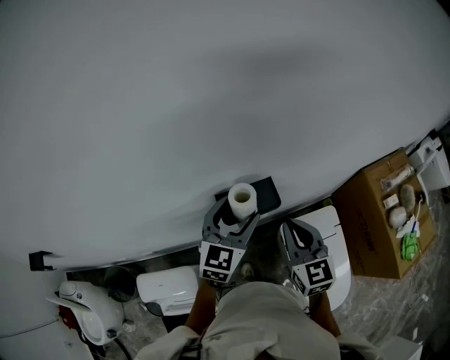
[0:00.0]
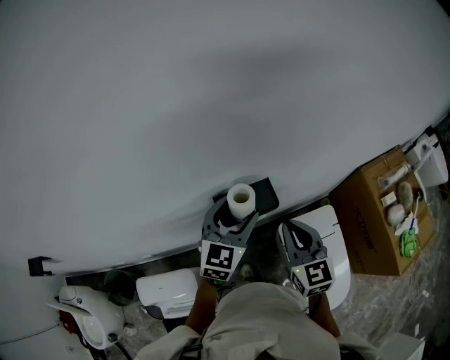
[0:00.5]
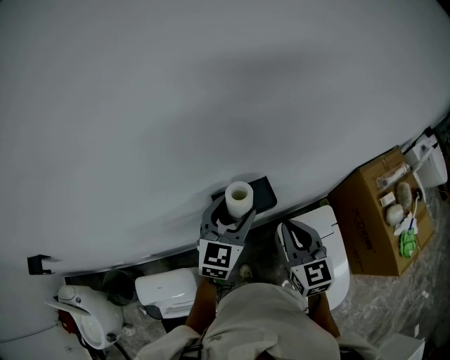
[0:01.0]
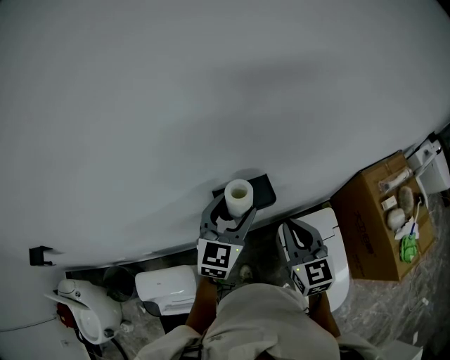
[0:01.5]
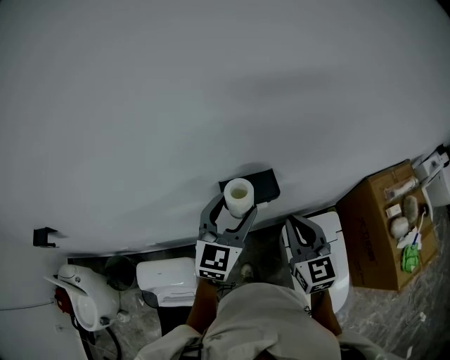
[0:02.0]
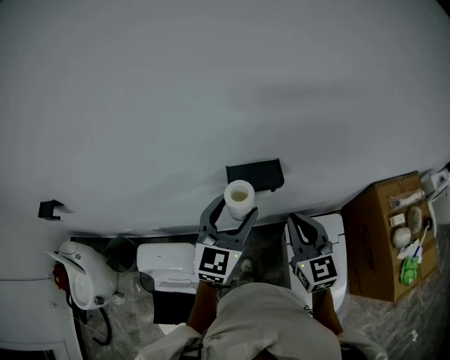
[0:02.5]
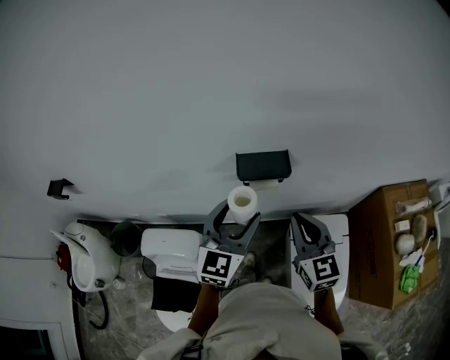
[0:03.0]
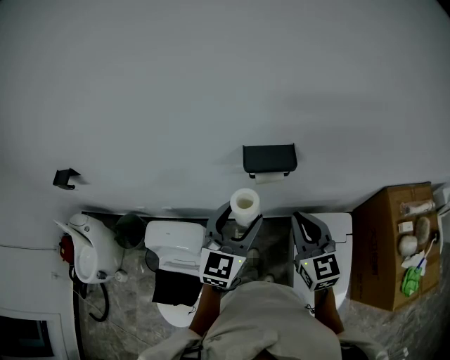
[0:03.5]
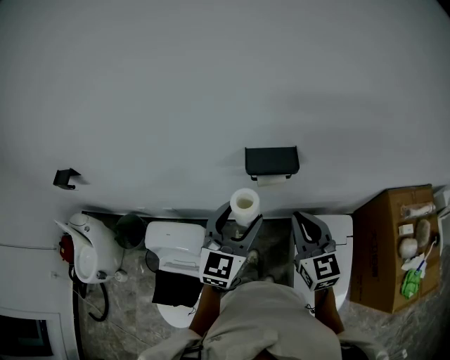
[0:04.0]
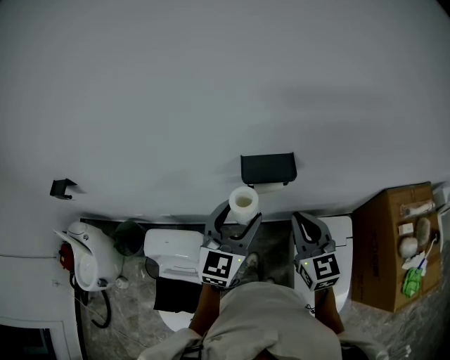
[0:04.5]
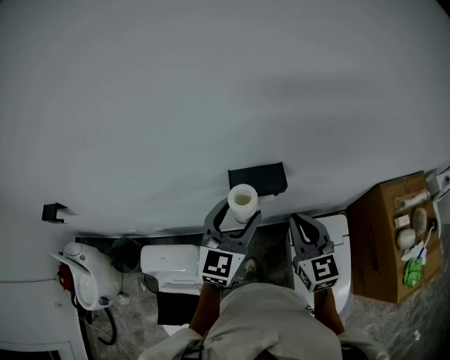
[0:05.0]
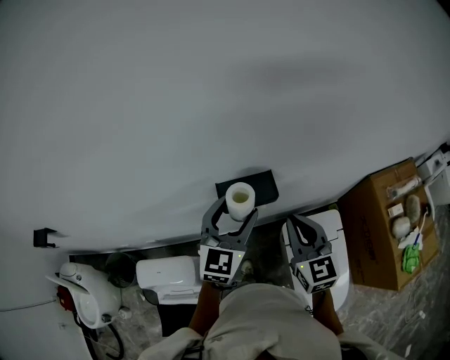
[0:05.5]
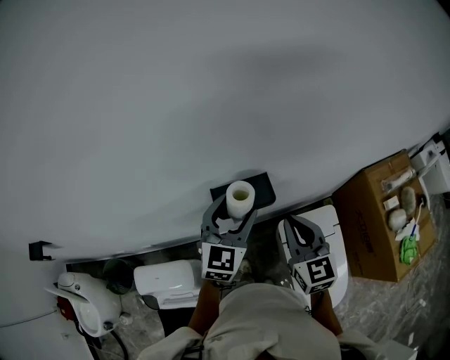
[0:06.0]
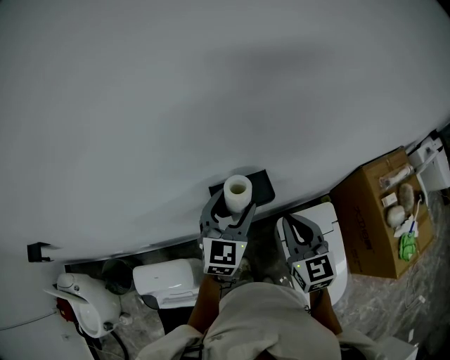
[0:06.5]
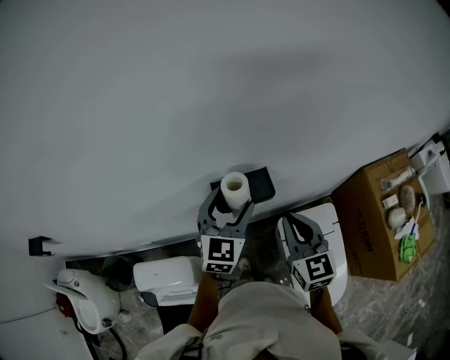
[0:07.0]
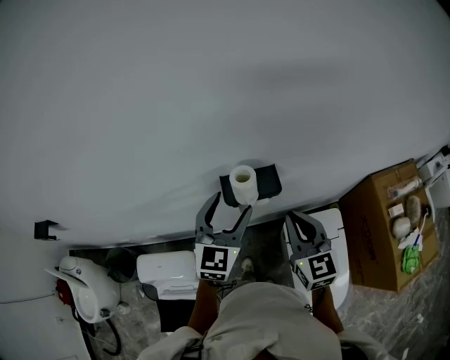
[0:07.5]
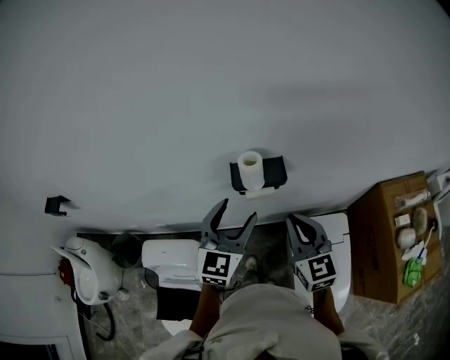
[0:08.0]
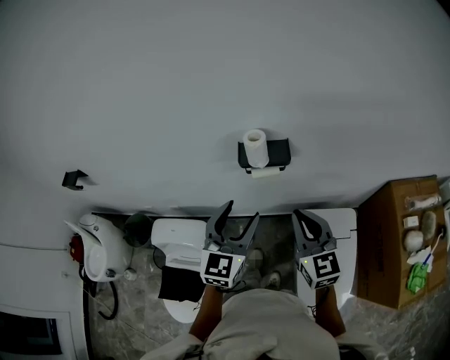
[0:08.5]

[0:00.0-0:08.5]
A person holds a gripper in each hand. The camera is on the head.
0:00.0 to 0:02.0: The left gripper moves some 5 cm.
0:02.0 to 0:04.0: The left gripper shifts approximately 10 cm backward; the right gripper heads backward, covering approximately 5 cm.
0:04.0 to 0:06.5: The left gripper travels forward by some 15 cm. Meanwhile the right gripper is displaced forward by roughly 10 cm.
0:06.5 to 0:08.5: The left gripper travels backward by approximately 20 cm. Meanwhile the right gripper moves backward, some 10 cm.

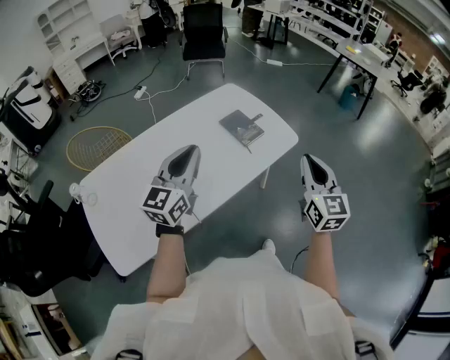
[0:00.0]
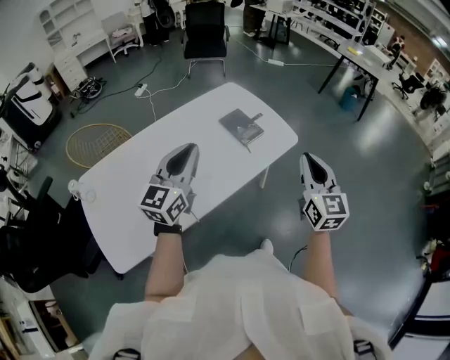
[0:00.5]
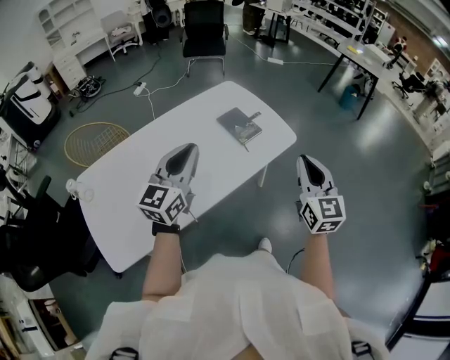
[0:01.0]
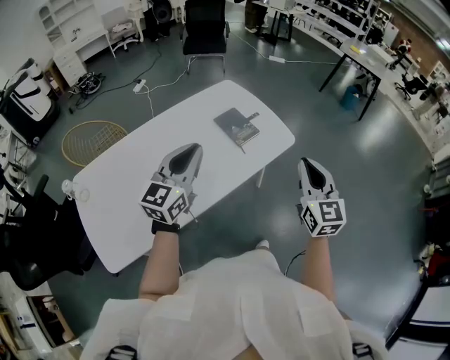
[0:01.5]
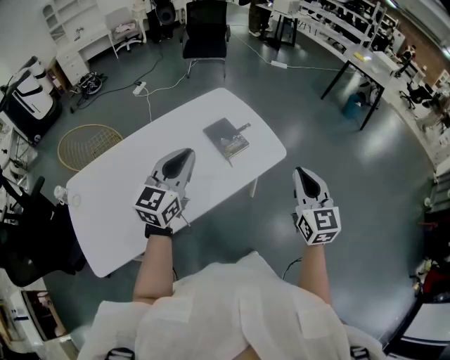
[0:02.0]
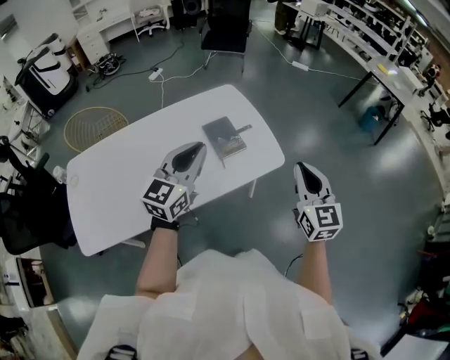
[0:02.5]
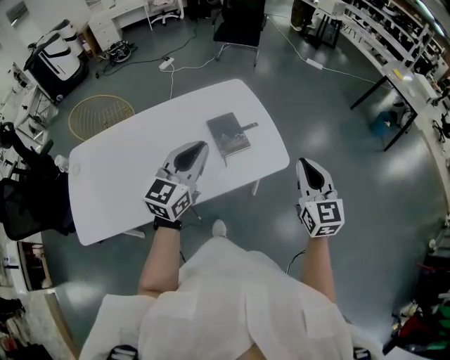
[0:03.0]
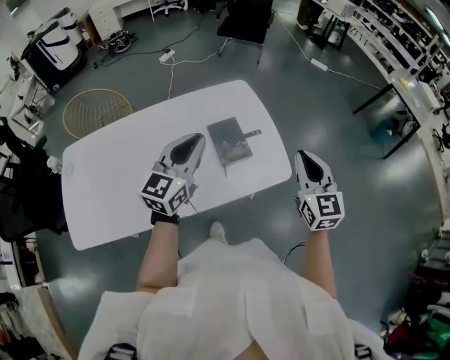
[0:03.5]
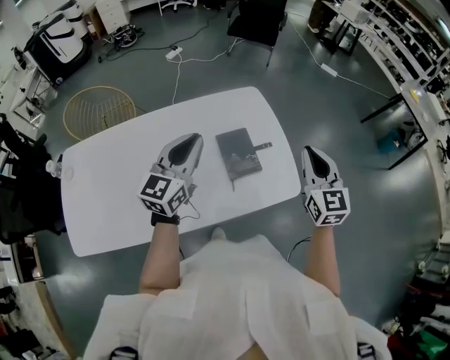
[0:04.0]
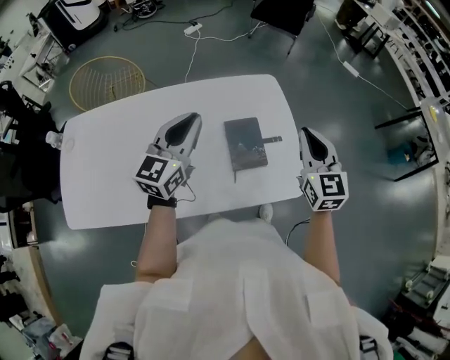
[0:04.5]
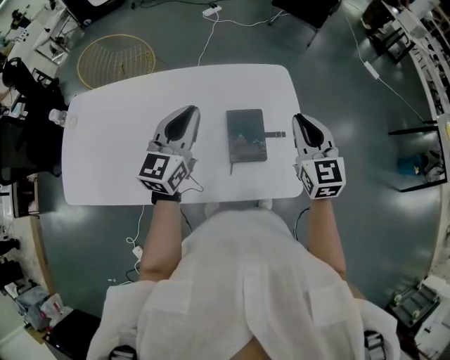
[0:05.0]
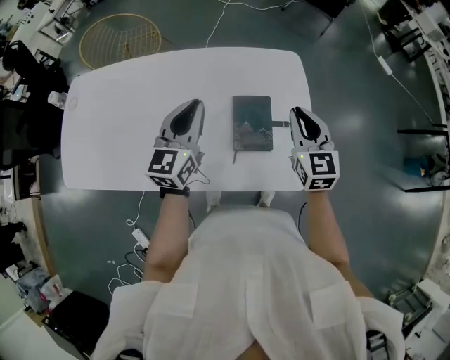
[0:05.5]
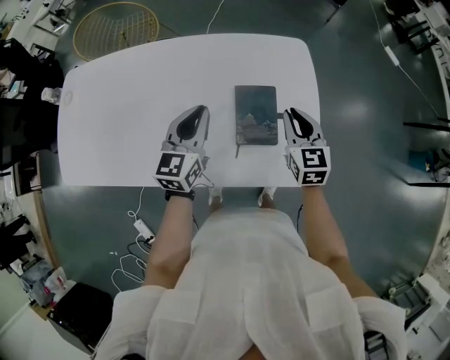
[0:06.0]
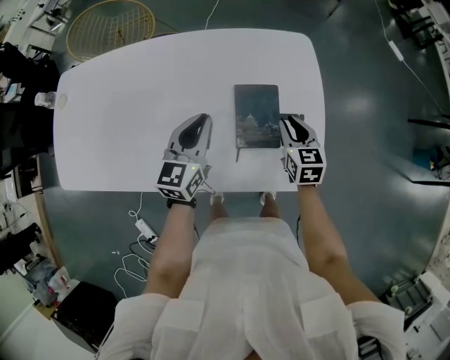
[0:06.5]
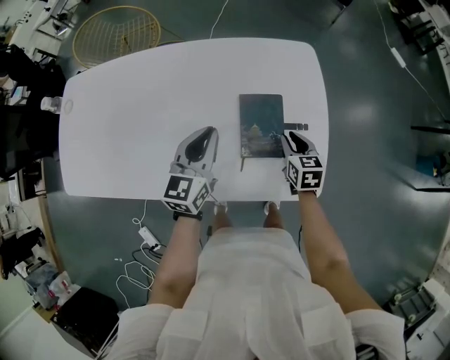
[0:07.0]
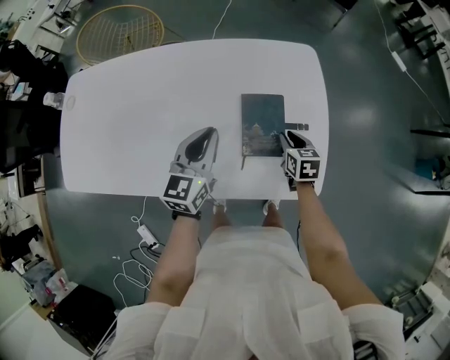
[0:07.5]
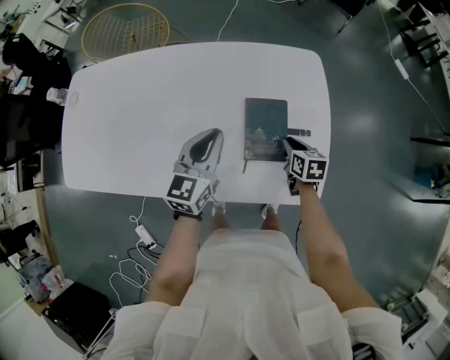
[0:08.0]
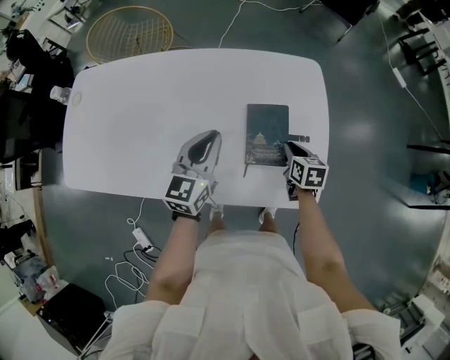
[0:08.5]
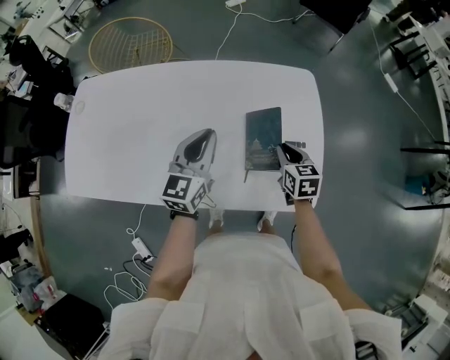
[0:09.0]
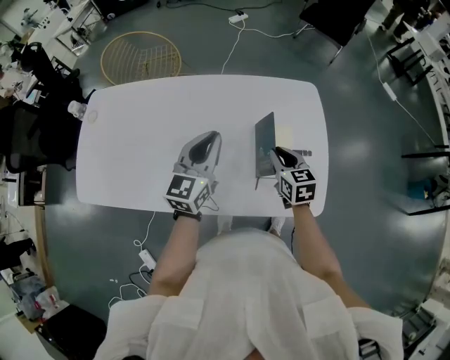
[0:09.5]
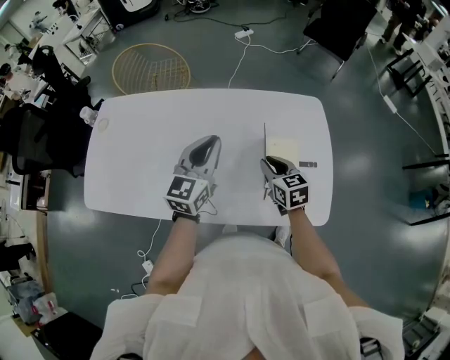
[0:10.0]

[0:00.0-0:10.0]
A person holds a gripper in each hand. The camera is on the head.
0:00.0 to 0:02.0: The two grippers go some 10 cm forward and to the right.
0:02.0 to 0:04.0: Both grippers move forward, some 25 cm.
0:04.0 to 0:06.0: The grippers both shift downward and forward by approximately 20 cm. The right gripper turns by some 30 degrees; the left gripper swivels some 30 degrees.
0:06.0 to 0:08.0: The right gripper goes approximately 15 cm downward, and swivels approximately 30 degrees.
0:08.0 to 0:10.0: The left gripper goes about 15 cm upward and to the left. Meanwhile the right gripper is displaced to the left and upward by some 25 cm, and changes its angle by about 30 degrees.

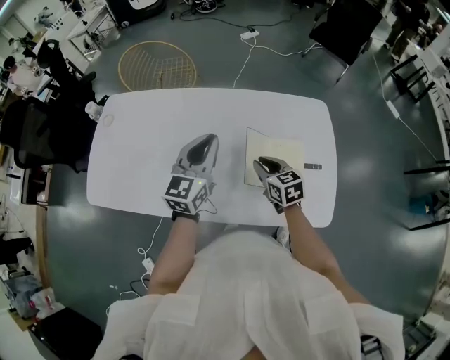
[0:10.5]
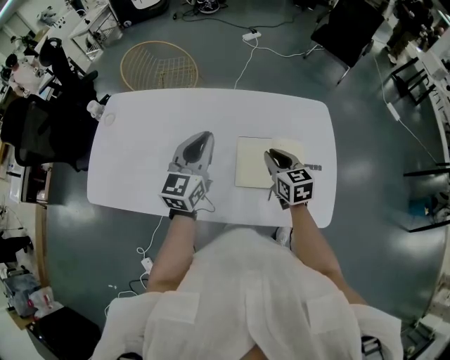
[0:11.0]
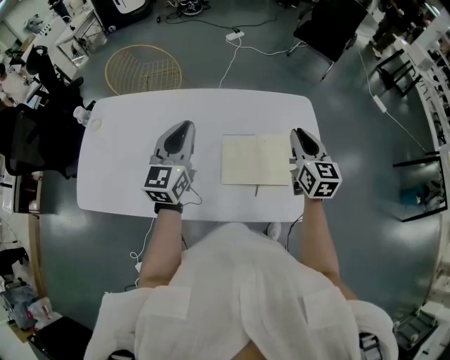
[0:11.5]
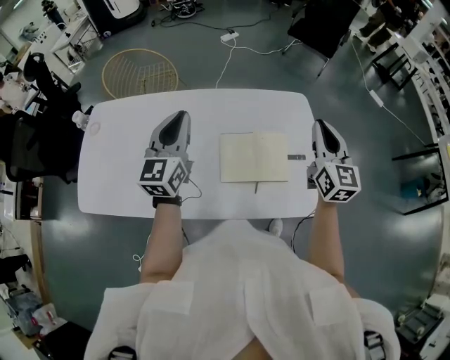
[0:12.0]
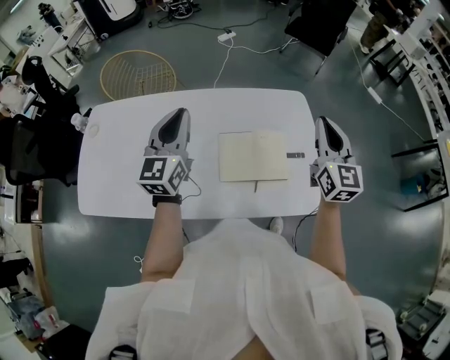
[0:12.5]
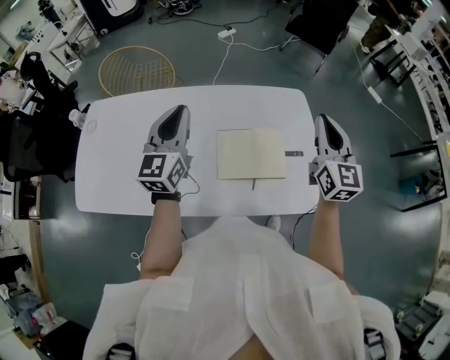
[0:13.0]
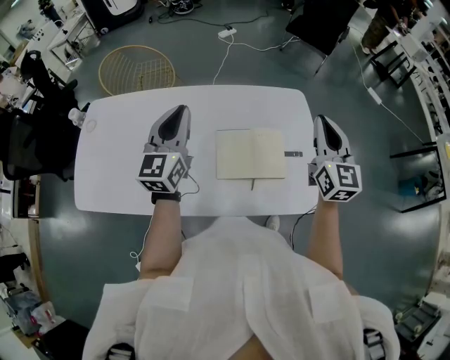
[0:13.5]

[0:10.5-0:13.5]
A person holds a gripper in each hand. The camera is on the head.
0:10.5 to 0:12.0: The left gripper moves upward, roughly 5 cm. Meanwhile the right gripper goes approximately 30 cm upward and to the right, and tilts its fingers some 30 degrees upward.
0:12.0 to 0:13.5: The grippers move only a little.

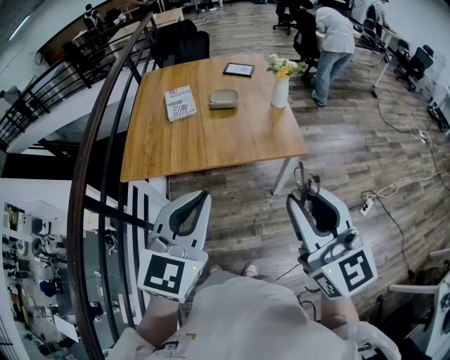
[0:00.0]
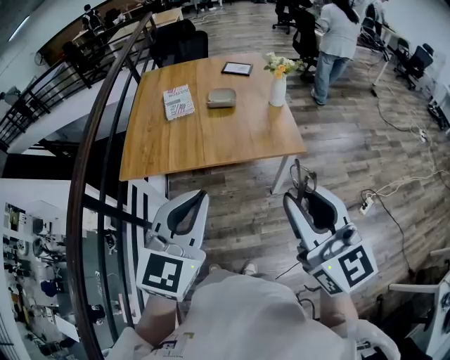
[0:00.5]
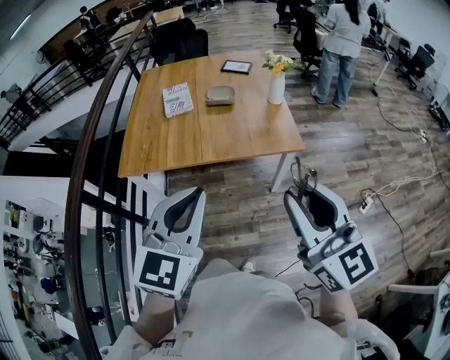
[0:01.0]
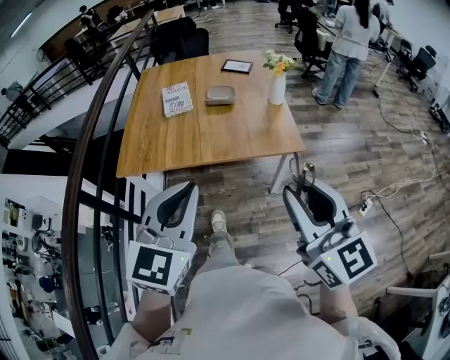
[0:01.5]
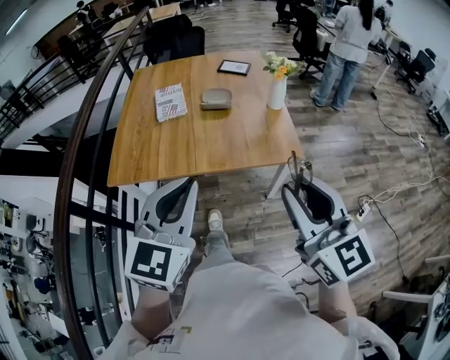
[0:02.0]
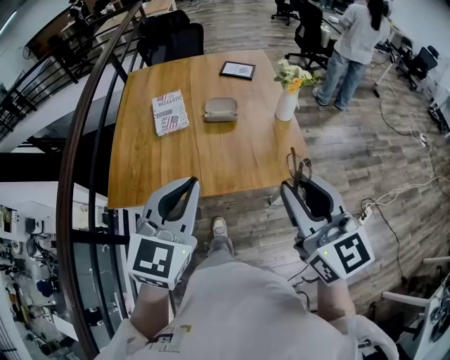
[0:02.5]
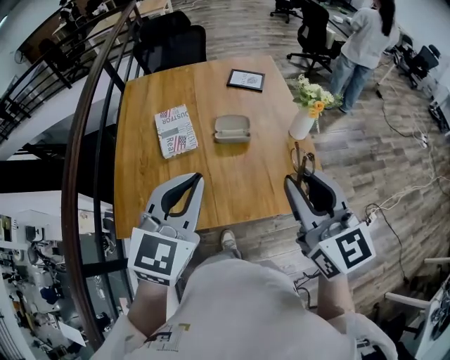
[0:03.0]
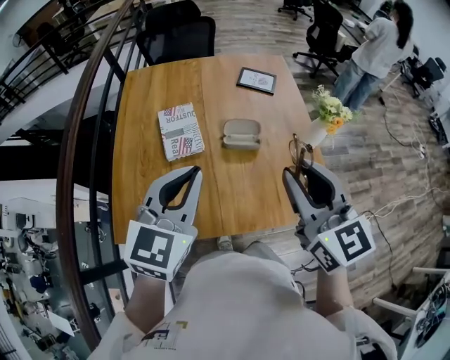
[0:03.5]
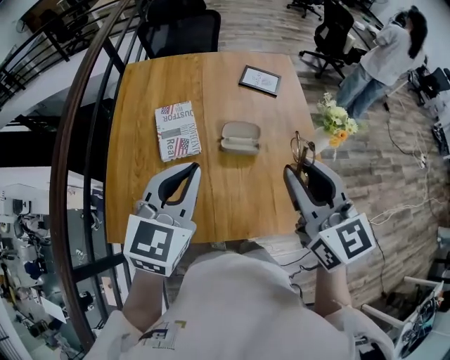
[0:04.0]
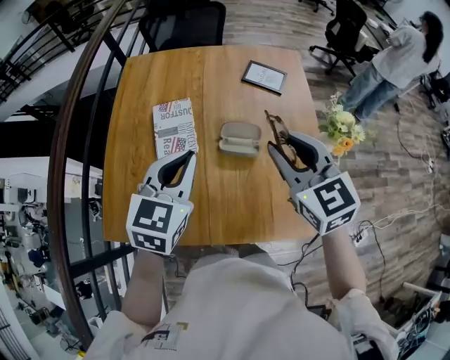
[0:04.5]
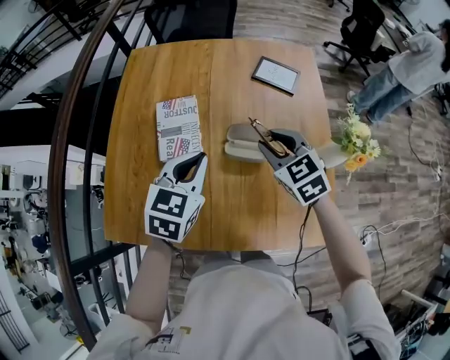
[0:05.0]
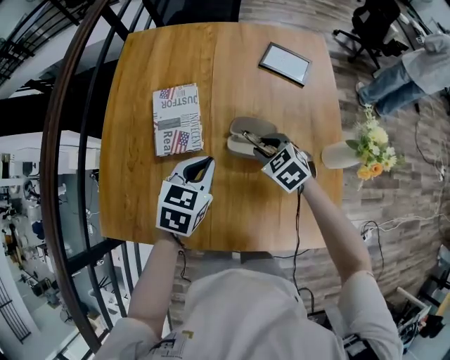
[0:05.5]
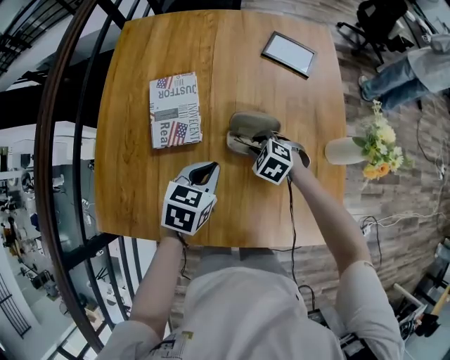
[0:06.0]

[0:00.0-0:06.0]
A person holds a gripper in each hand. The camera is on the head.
0:00.0 to 0:02.0: The two grippers go approximately 10 cm forward.
0:02.0 to 0:04.0: The two grippers travel together, forward, some 50 cm.
0:04.0 to 0:06.0: The right gripper is displaced downward and forward by some 50 cm, and tips its fingers downward by about 60 degrees. The left gripper travels downward by roughly 30 cm, and swivels roughly 40 degrees.
